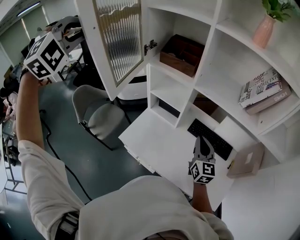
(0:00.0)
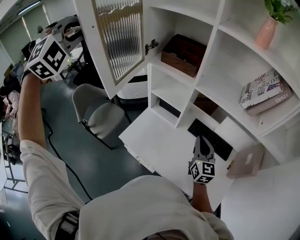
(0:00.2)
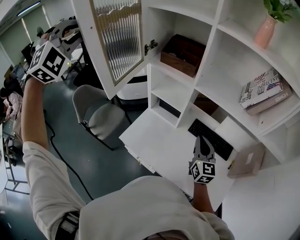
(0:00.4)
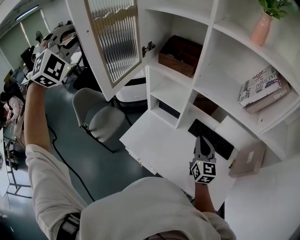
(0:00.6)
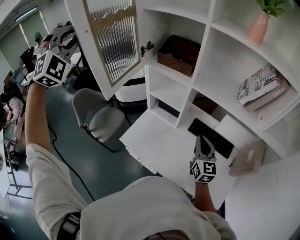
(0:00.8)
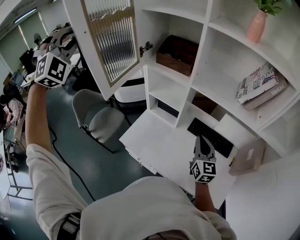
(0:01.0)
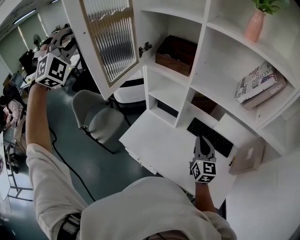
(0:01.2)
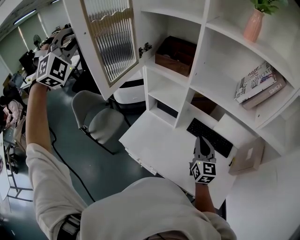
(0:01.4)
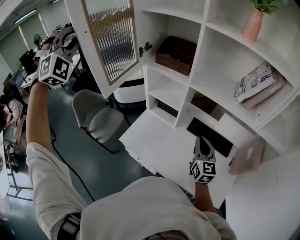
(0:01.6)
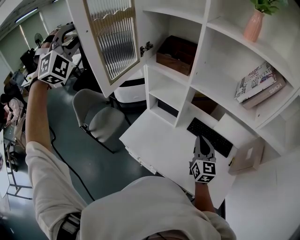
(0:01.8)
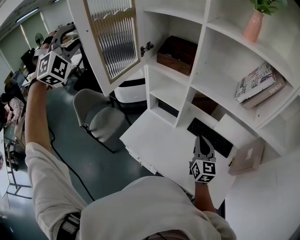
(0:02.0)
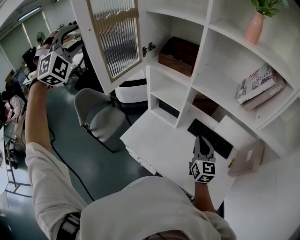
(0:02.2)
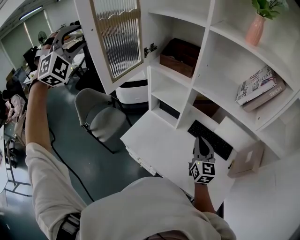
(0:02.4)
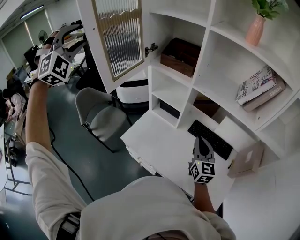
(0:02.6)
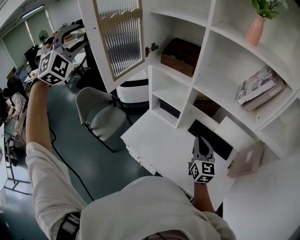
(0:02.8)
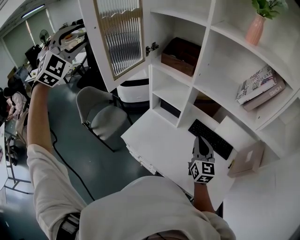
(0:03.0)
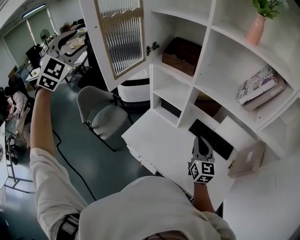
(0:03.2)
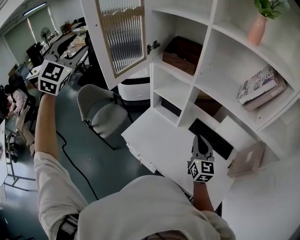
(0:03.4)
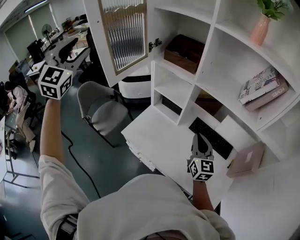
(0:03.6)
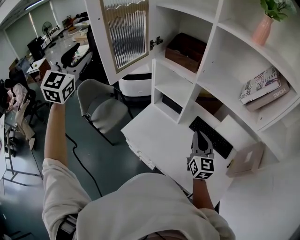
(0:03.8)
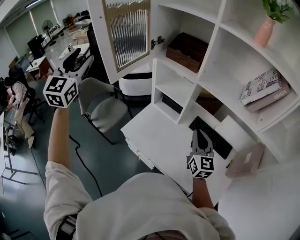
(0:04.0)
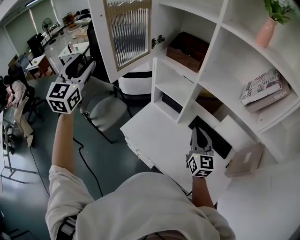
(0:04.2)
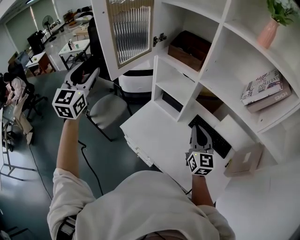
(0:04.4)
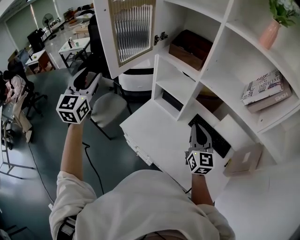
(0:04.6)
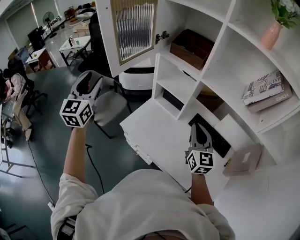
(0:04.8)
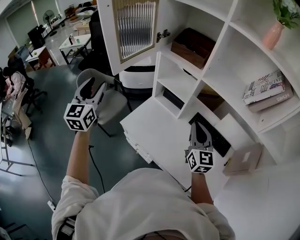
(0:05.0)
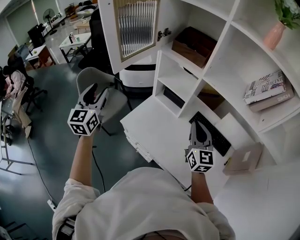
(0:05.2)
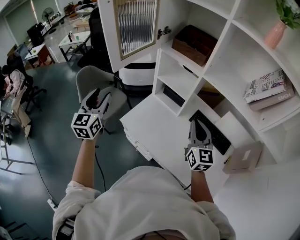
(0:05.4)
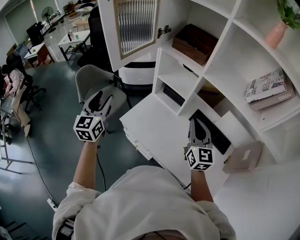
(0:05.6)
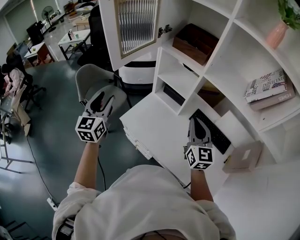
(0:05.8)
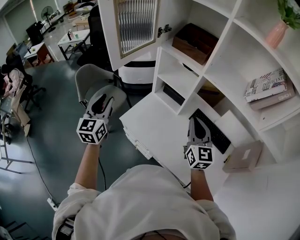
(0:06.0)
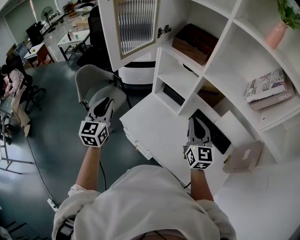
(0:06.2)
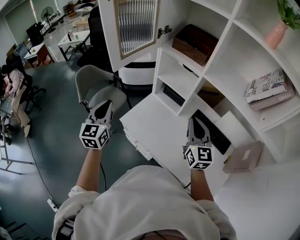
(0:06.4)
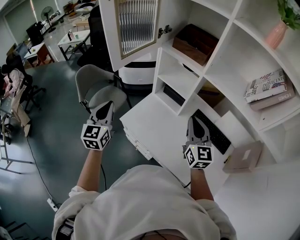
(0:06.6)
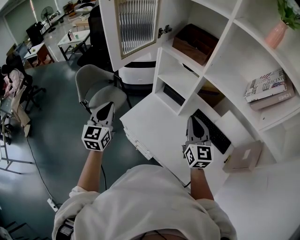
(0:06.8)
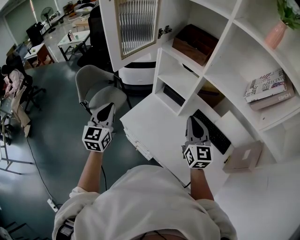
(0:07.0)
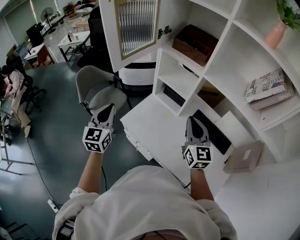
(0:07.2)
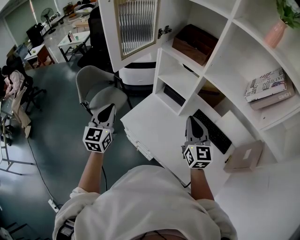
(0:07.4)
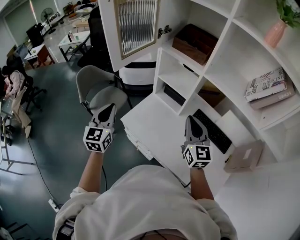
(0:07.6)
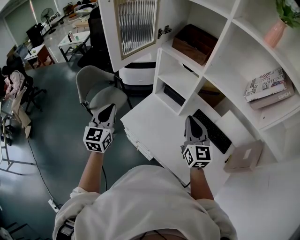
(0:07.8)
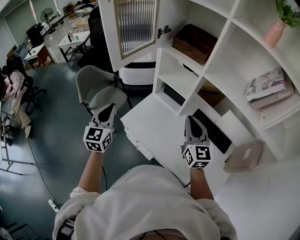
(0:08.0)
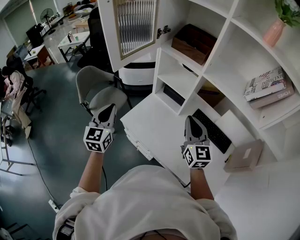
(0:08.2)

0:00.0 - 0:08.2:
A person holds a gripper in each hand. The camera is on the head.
0:00.0 - 0:01.6: The grippers move only a little.
0:01.6 - 0:03.2: The left gripper changes place by some 5 cm, changes its angle by approximately 30 degrees, and opens its fingers.
0:03.2 - 0:05.0: The right gripper changes place by roughly 5 cm. Meanwhile the left gripper is displaced downward by roughly 25 cm, and twists some 60 degrees counterclockwise, seen from behind.
0:05.0 - 0:06.6: The left gripper is displaced downward by approximately 10 cm, and closes its fingers.
0:06.6 - 0:08.2: Neither gripper changes place.

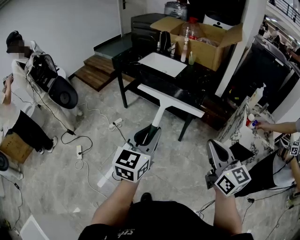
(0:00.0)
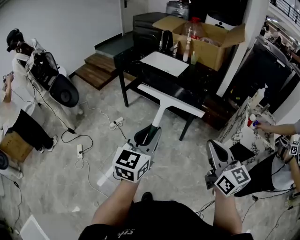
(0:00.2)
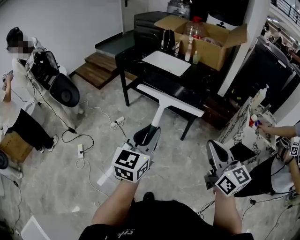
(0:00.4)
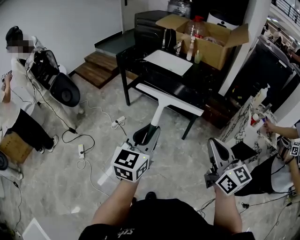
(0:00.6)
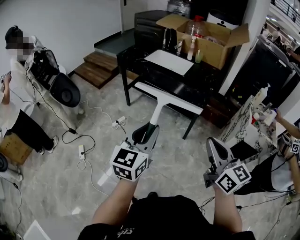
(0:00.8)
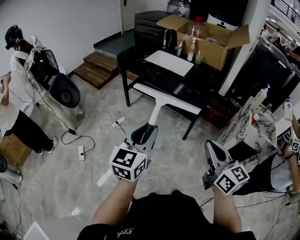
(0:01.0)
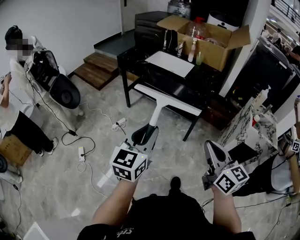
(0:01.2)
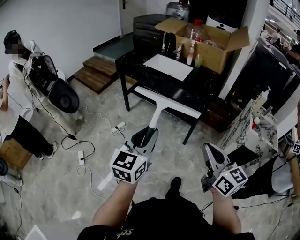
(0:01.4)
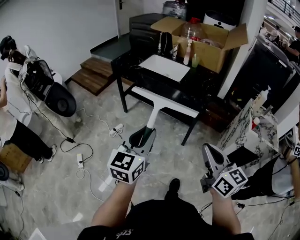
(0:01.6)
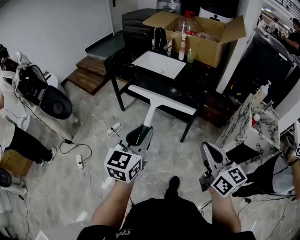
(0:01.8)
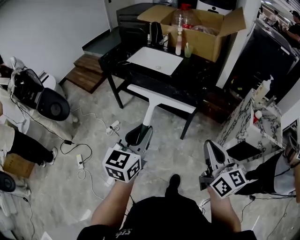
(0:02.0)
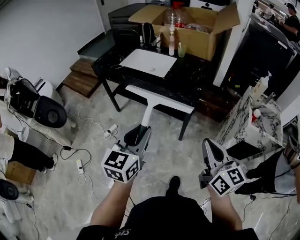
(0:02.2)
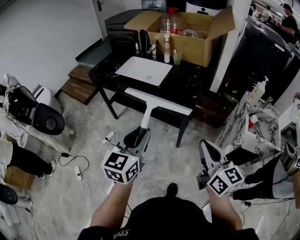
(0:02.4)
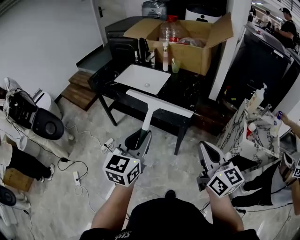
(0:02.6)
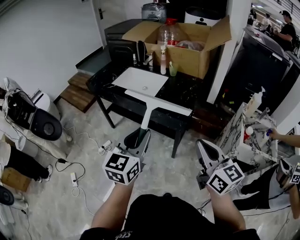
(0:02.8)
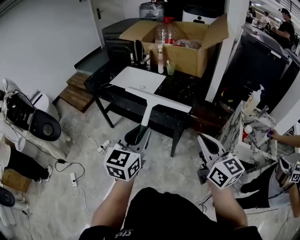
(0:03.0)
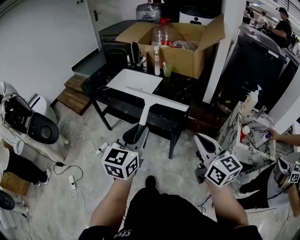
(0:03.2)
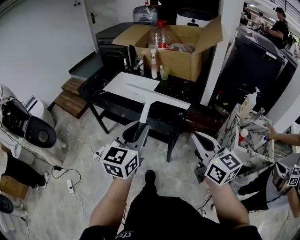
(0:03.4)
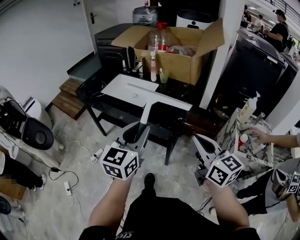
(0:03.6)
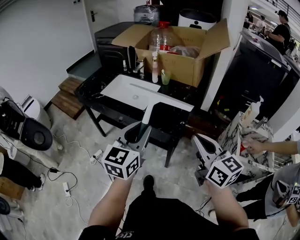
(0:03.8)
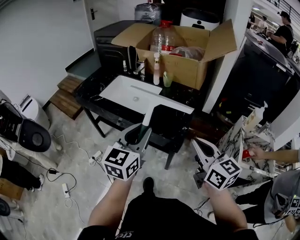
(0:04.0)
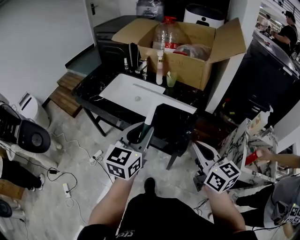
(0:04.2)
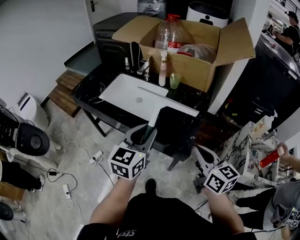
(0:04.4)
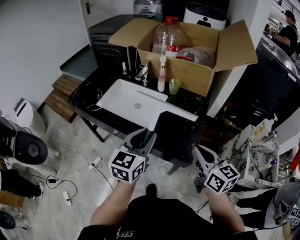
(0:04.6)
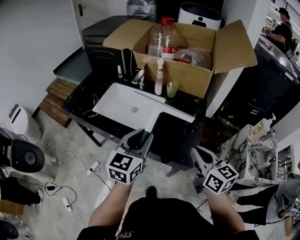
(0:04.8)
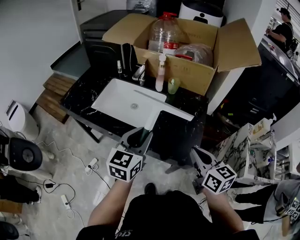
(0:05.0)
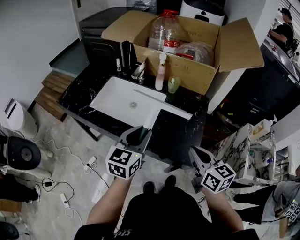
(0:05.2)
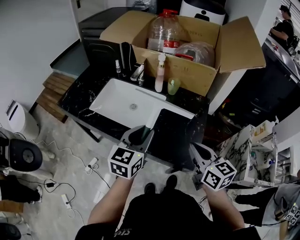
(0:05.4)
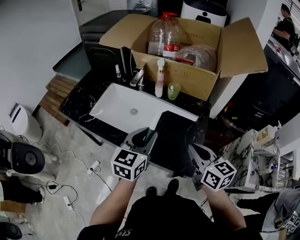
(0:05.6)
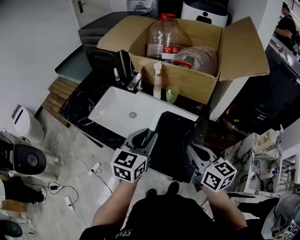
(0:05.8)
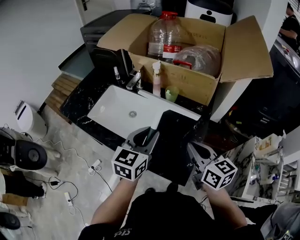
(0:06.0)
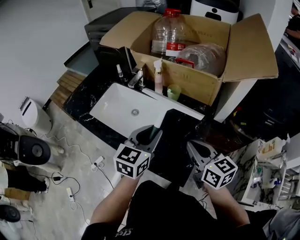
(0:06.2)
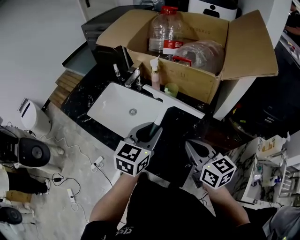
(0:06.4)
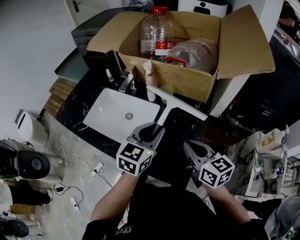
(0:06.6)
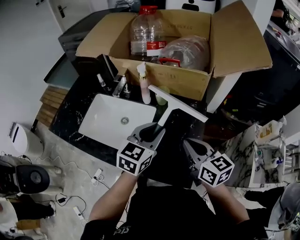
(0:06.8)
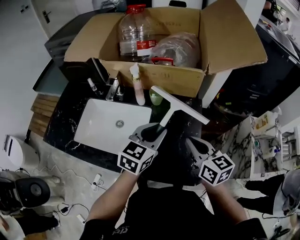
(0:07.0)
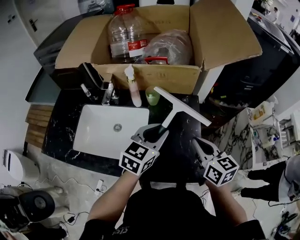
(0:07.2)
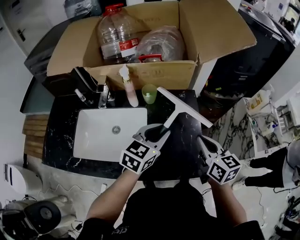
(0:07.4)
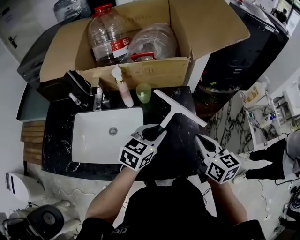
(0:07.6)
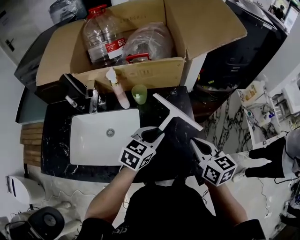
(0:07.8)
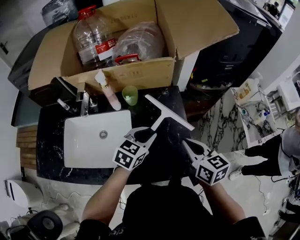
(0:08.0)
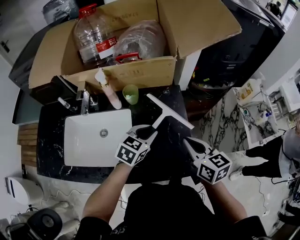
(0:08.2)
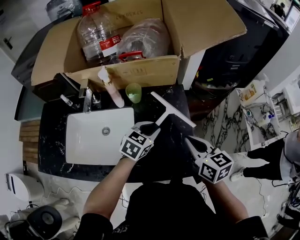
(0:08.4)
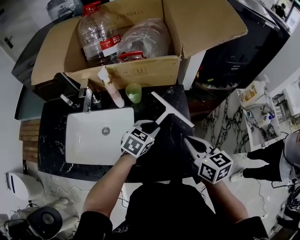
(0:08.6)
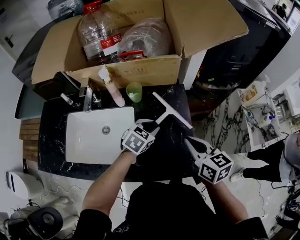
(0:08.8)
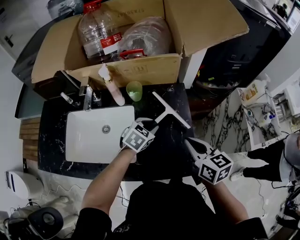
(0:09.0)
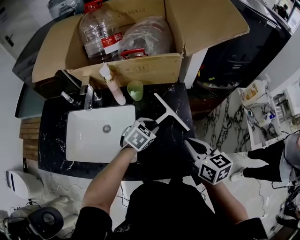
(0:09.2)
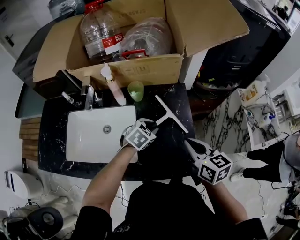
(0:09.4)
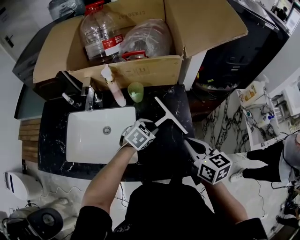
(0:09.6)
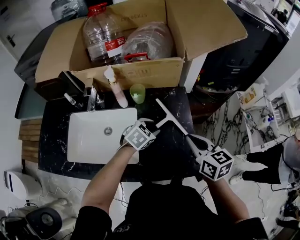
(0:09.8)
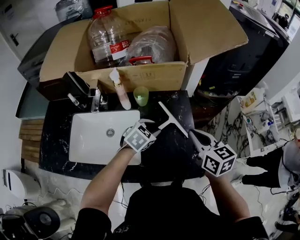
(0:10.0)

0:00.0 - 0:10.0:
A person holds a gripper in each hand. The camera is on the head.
0:00.0 - 0:01.4: Both grippers move to the left, about 10 cm.
0:01.4 - 0:02.8: The grippers both shift forward and to the right by roughly 25 cm.
0:02.8 - 0:04.2: Both grippers travel together forward, about 20 cm.
0:04.2 - 0:05.8: Both grippers move forward, approximately 20 cm.
0:05.8 - 0:07.2: The left gripper ends up roughly 15 cm from where it was, and swivels approximately 30 degrees, while the right gripper ends up some 10 cm from where it was, and turns by some 20 degrees.
0:07.2 - 0:08.6: The left gripper moves downward, some 15 cm, and turns by roughly 20 degrees.
0:08.6 - 0:10.0: There are only small adjustments of the grippers.

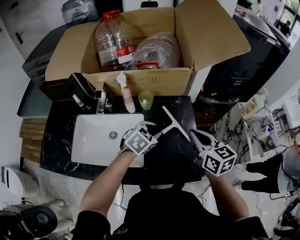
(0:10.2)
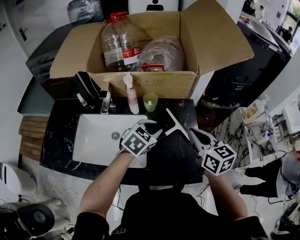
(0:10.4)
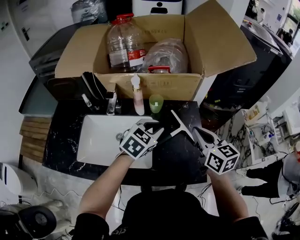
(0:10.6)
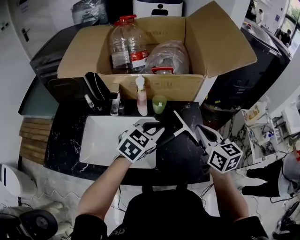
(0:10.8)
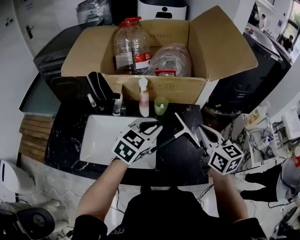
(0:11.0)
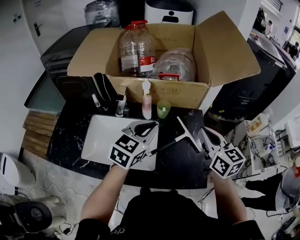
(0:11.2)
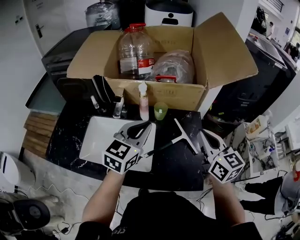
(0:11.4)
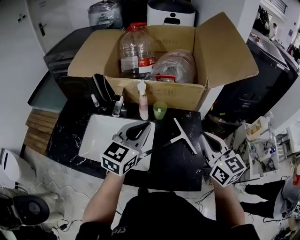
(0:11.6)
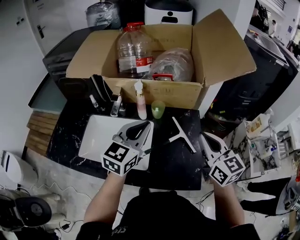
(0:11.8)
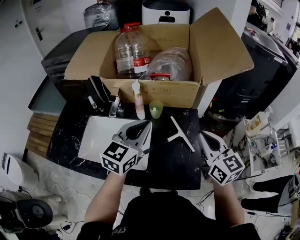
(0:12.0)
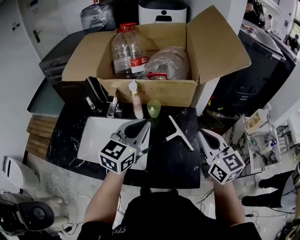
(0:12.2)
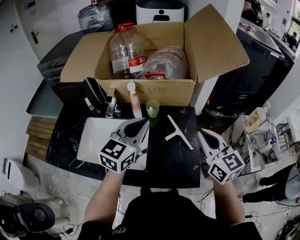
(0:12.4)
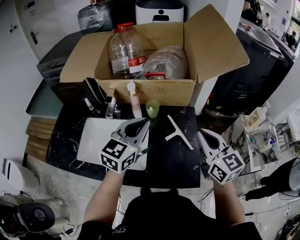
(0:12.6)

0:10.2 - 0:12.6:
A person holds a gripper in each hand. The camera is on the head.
0:10.2 - 0:11.4: The left gripper shifts some 20 cm upward and to the left, tilts its fingers approximately 30 degrees upward, and closes up, while the right gripper is displaced upward by roughly 10 cm.
0:11.4 - 0:12.6: There are only small adjustments of the grippers.

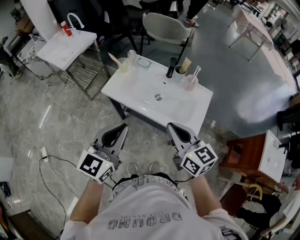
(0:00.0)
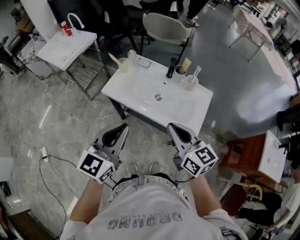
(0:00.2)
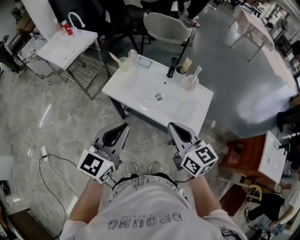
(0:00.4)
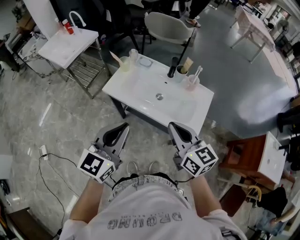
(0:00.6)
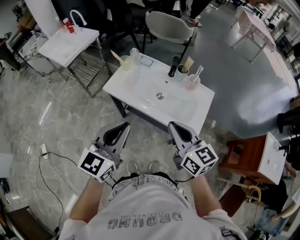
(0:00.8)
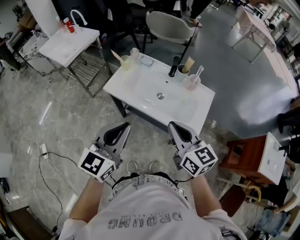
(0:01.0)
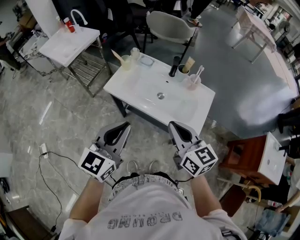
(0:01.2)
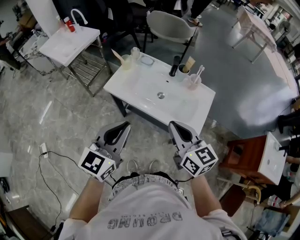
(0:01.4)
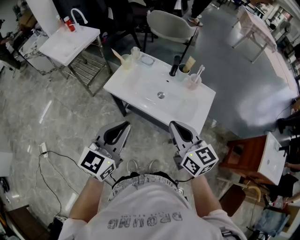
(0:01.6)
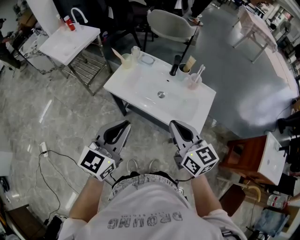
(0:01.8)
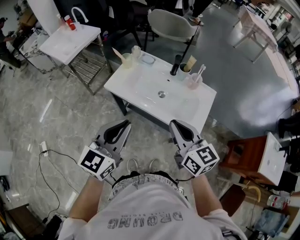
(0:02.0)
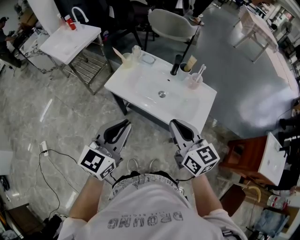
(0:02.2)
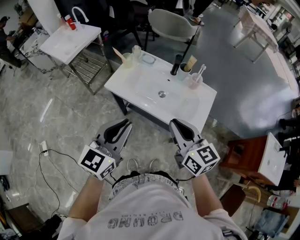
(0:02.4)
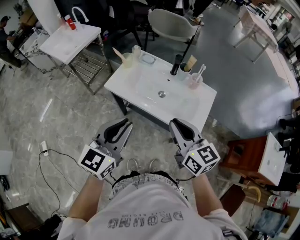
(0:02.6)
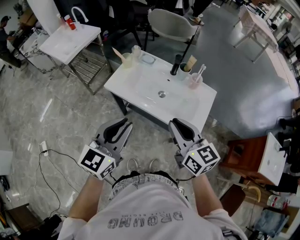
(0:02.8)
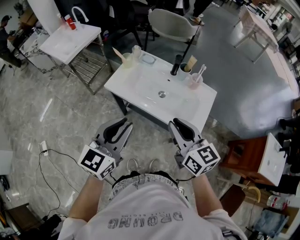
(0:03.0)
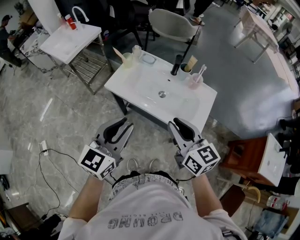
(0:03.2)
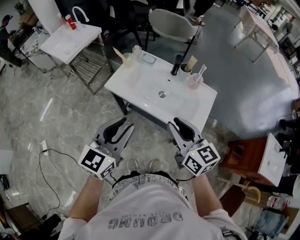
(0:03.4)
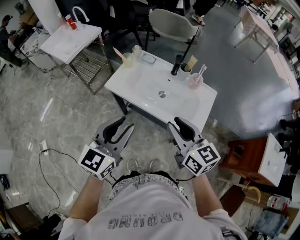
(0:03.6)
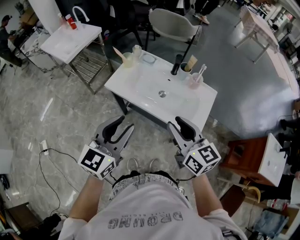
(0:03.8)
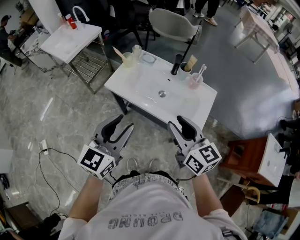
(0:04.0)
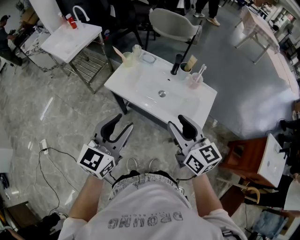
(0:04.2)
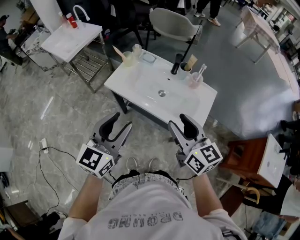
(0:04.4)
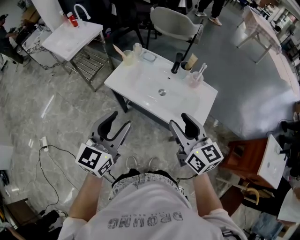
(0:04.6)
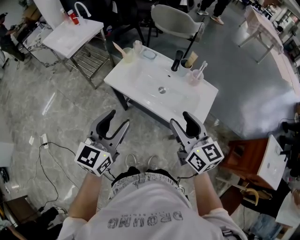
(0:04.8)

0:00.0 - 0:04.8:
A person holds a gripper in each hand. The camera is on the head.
0:00.0 - 0:01.6: Neither gripper changes place.
0:01.6 - 0:03.2: The right gripper opens its fingers.
0:03.2 - 0:04.8: The right gripper opens up, while the left gripper opens.
